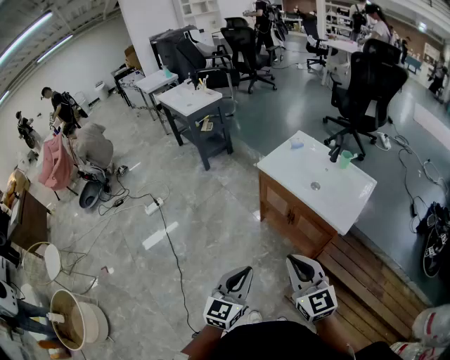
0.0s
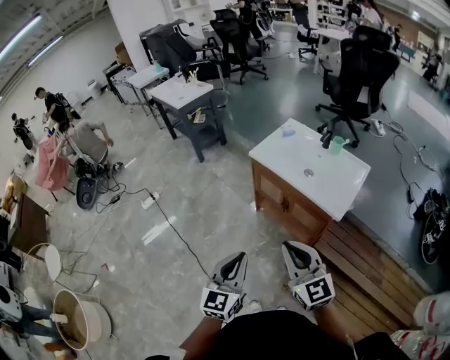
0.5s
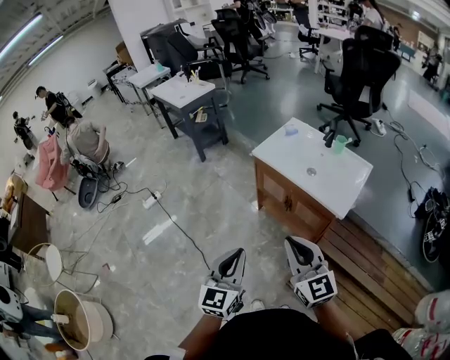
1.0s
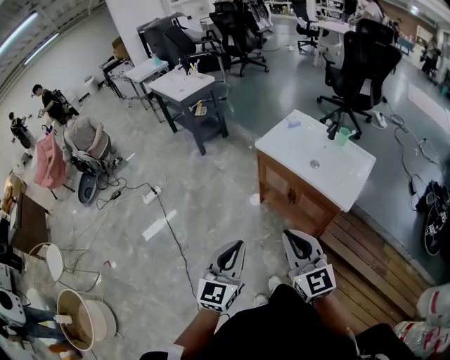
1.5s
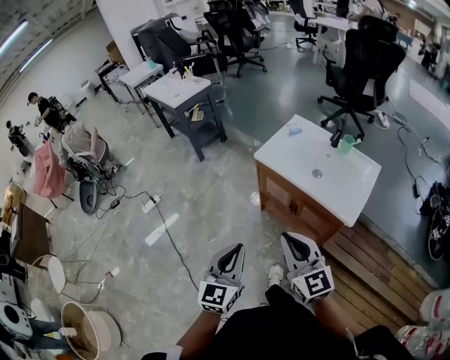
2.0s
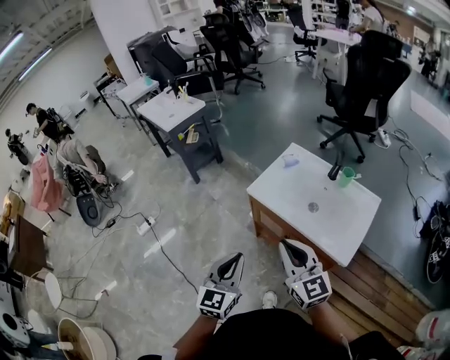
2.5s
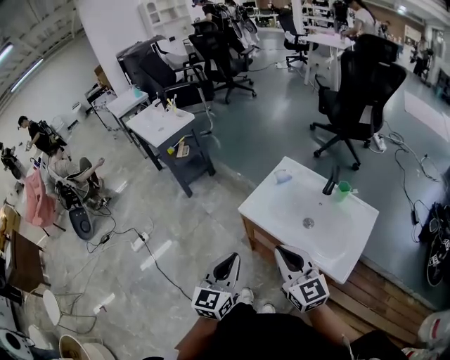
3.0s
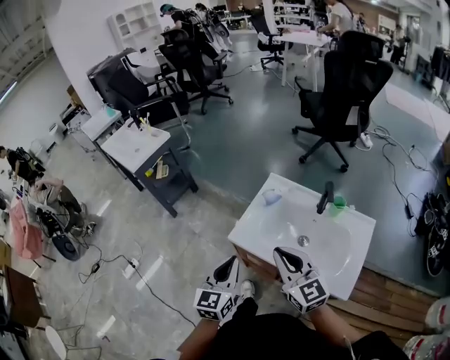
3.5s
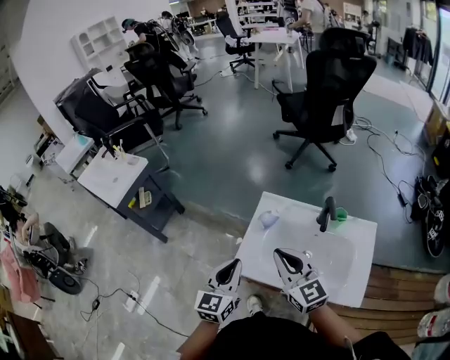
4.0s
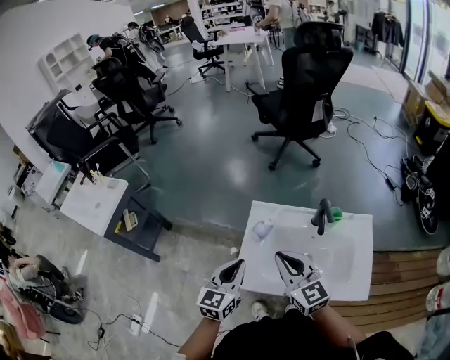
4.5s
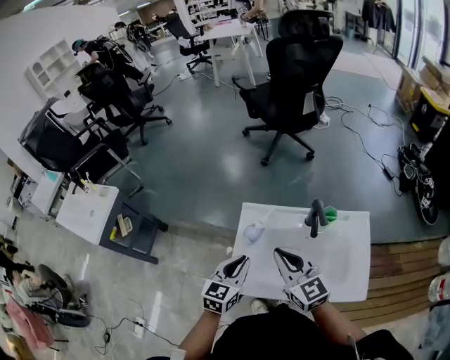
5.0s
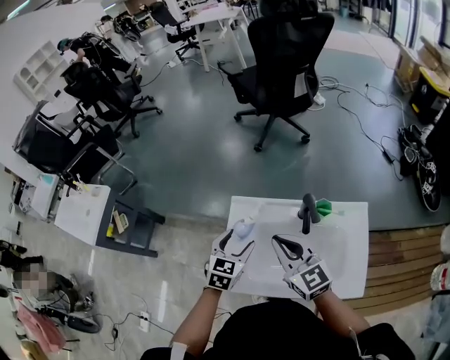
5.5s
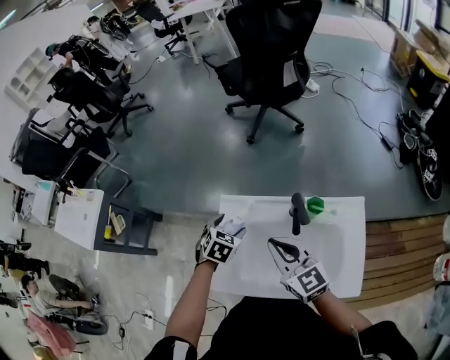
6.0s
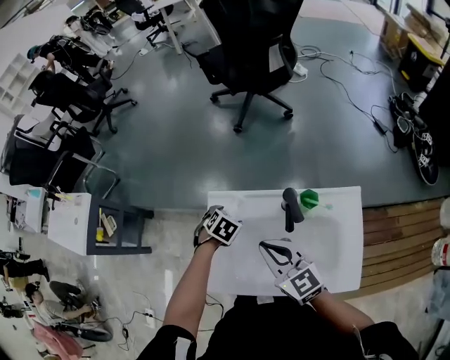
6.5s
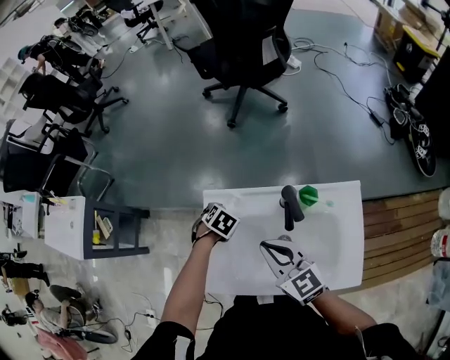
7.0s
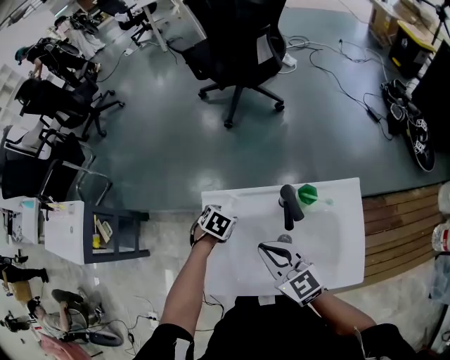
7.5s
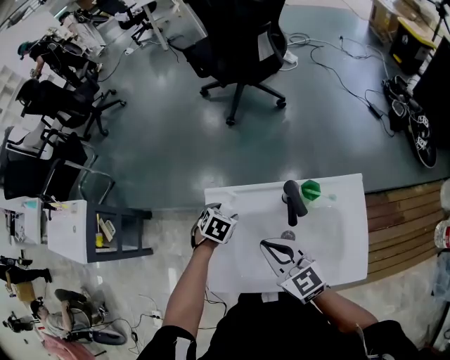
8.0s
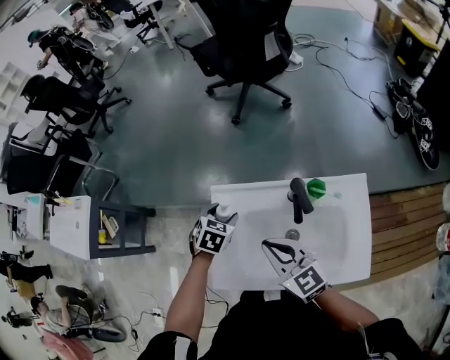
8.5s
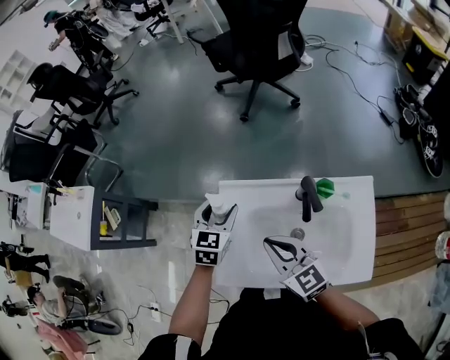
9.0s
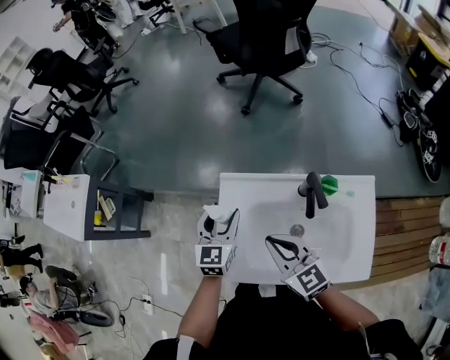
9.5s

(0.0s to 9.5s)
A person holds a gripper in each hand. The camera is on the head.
0.0s - 2.0s: The two grippers go about 10 cm forward.
2.0s - 4.0s: The pair of grippers is taken forward, about 60 cm. The left gripper rotates roughly 20 degrees.
4.0s - 5.5s: The right gripper heads forward and to the right, covering roughly 15 cm; the left gripper moves forward, to the right and downward, approximately 25 cm, swivels approximately 30 degrees, and opens up.
5.5s - 7.5s: The right gripper moves downward, about 10 cm; the left gripper moves downward, roughly 20 cm, and tilts its fingers some 40 degrees downward.
7.5s - 9.5s: The left gripper is displaced upward by approximately 15 cm, and tips its fingers upward by approximately 50 degrees; the right gripper changes place by about 5 cm.

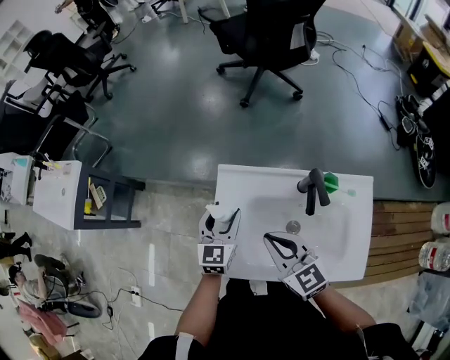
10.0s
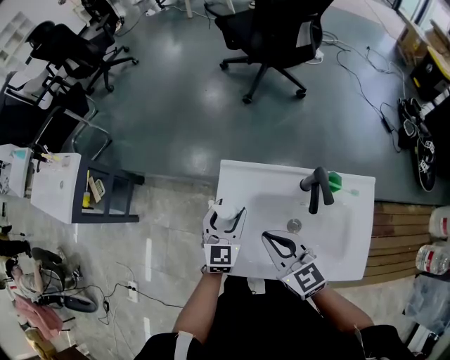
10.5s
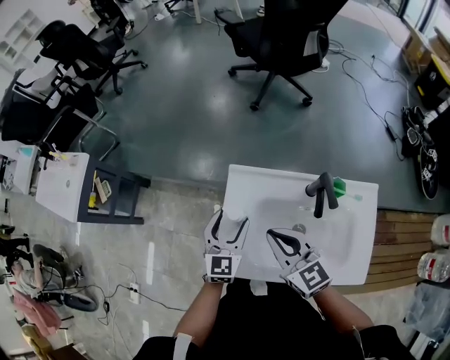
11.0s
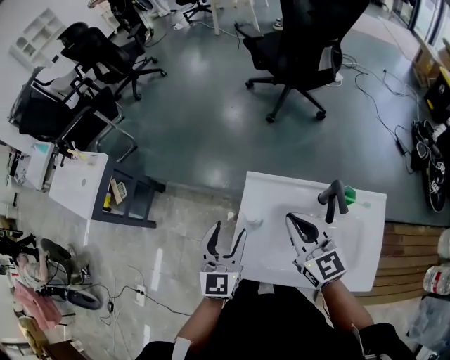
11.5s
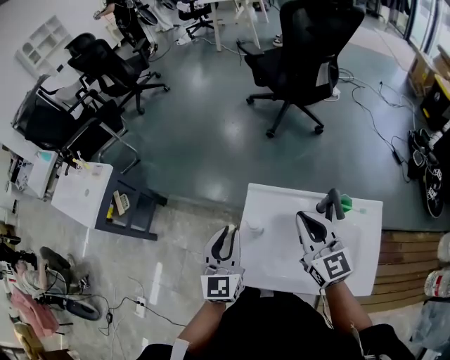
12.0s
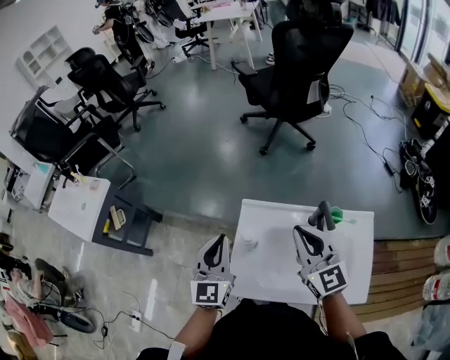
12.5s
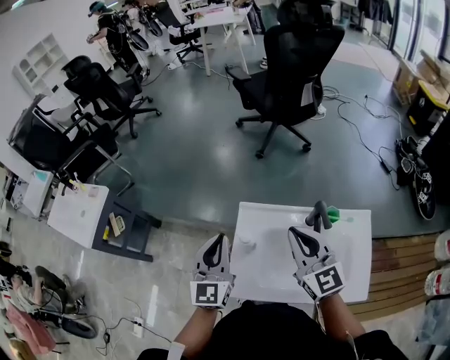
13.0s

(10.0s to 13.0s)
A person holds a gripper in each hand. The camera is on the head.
10.0s - 11.5s: The left gripper heads upward and to the left, covering some 15 cm. Meanwhile the right gripper goes some 5 cm upward.
11.5s - 13.0s: Both grippers travel together upward, some 10 cm. The left gripper closes.

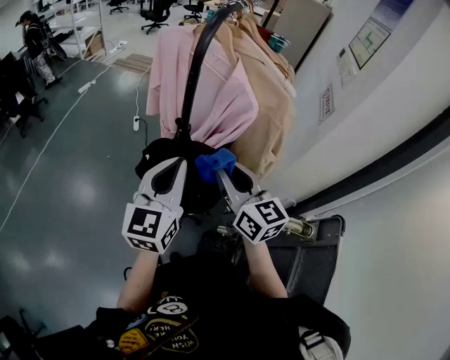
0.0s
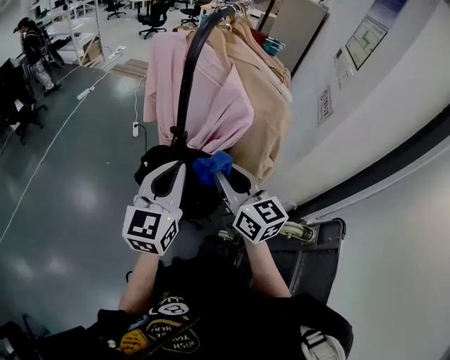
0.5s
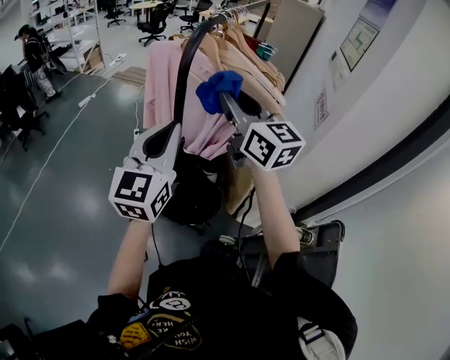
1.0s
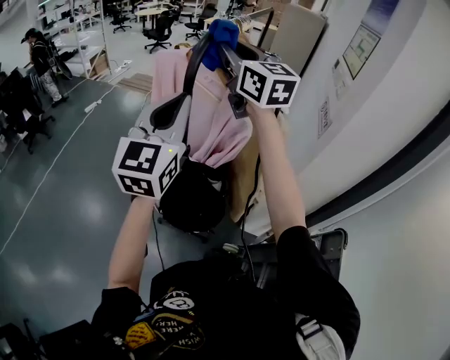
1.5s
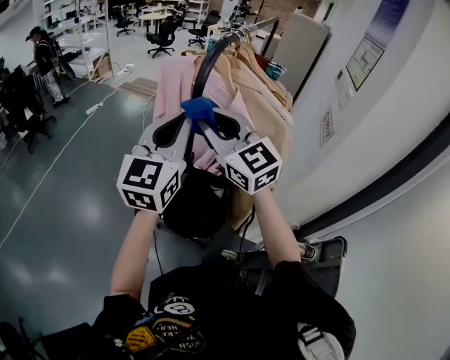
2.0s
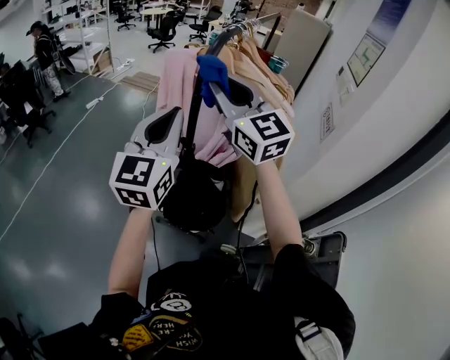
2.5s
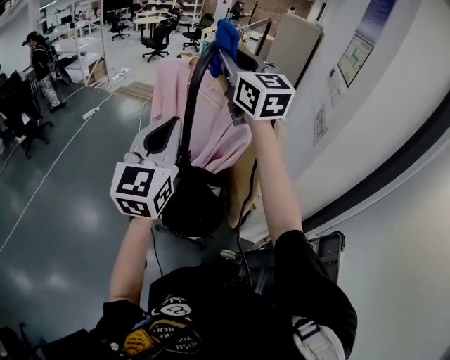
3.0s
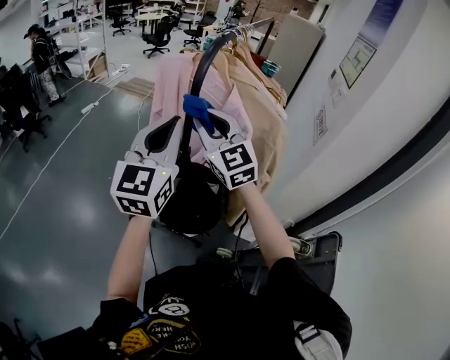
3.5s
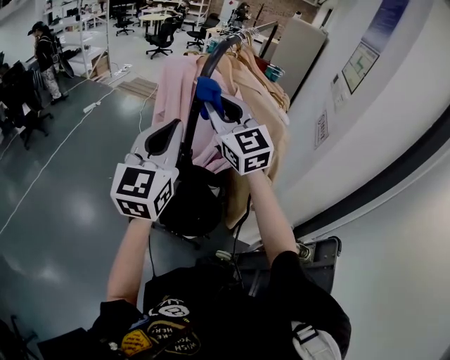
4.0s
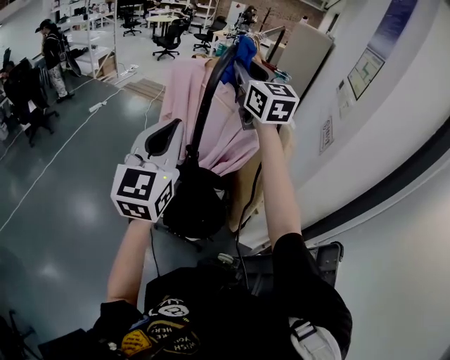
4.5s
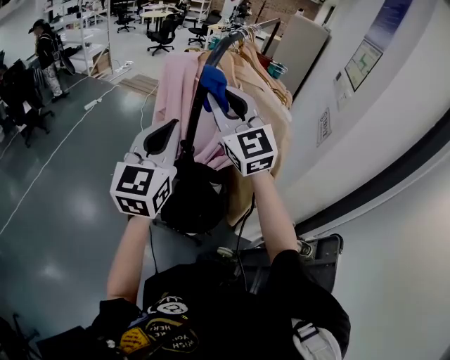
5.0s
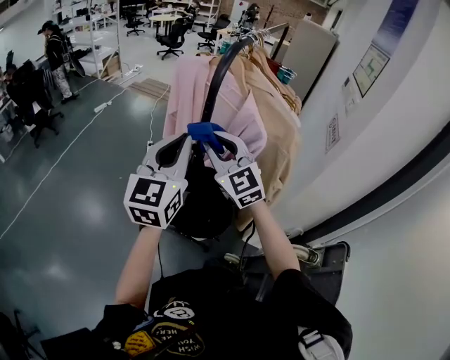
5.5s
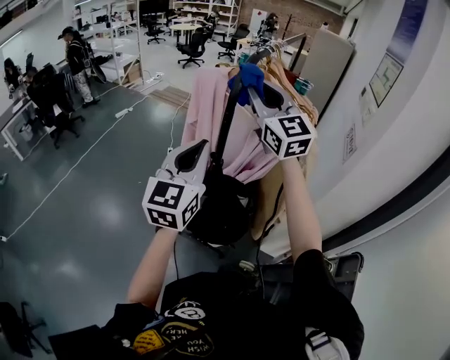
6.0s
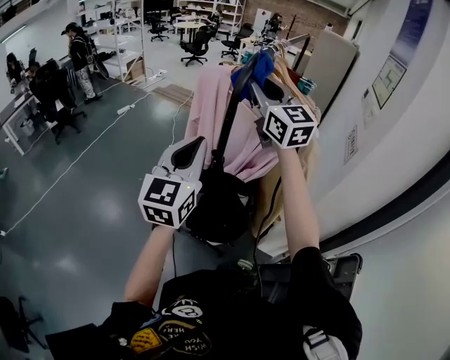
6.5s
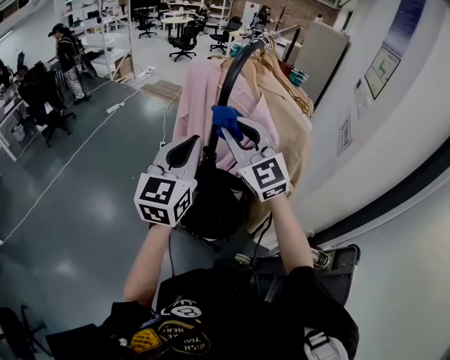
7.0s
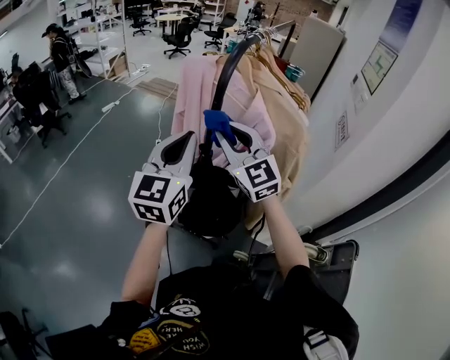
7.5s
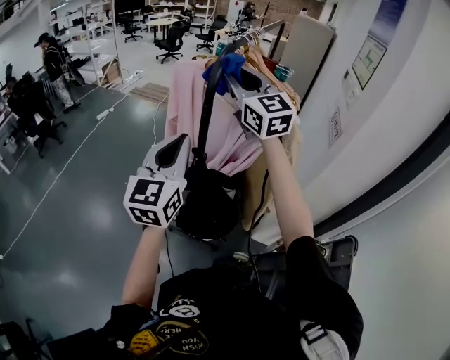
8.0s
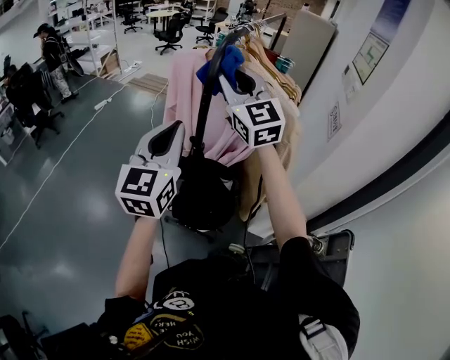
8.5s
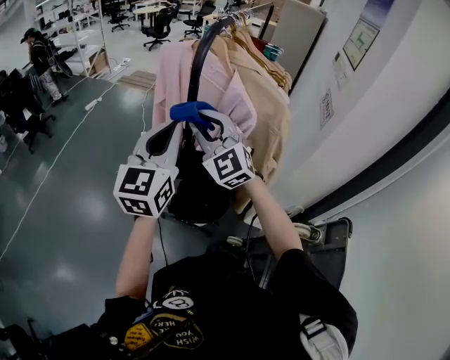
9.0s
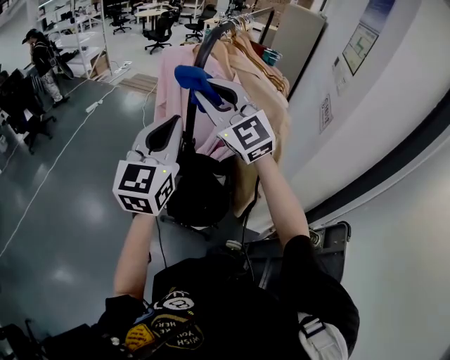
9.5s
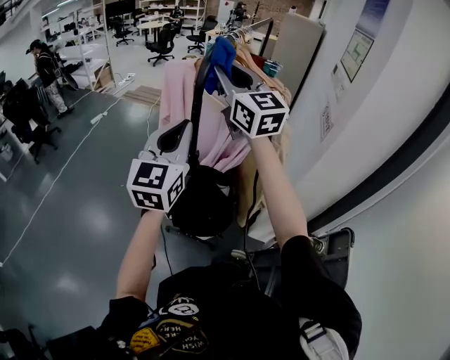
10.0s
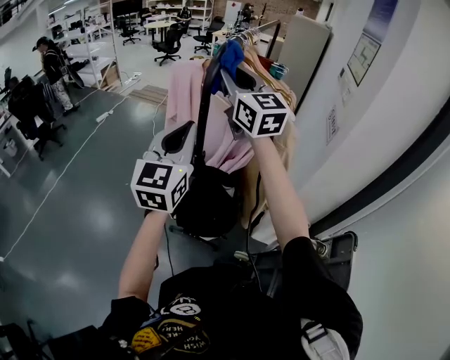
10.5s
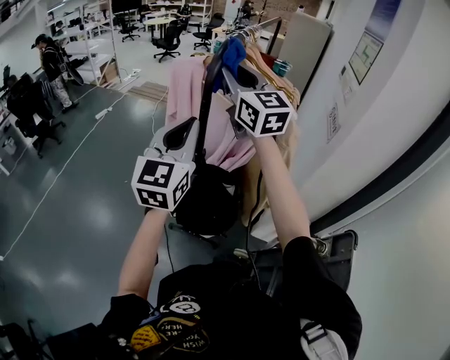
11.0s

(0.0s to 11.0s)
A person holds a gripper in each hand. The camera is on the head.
0.0s - 2.0s: The right gripper moves upward, forward and to the left, approximately 20 cm, and rotates roughly 30 degrees. The left gripper is displaced upward and forward by approximately 15 cm.
2.0s - 3.5s: The right gripper moves about 15 cm upward and comes back.
3.5s - 5.5s: The right gripper goes upward and returns, about 15 cm each way.
5.5s - 7.5s: The right gripper moves some 15 cm upward and comes back.
7.5s - 9.0s: The right gripper goes upward and returns, about 15 cm each way.
9.0s - 11.0s: The right gripper travels upward and forward by roughly 15 cm, and rotates about 30 degrees.

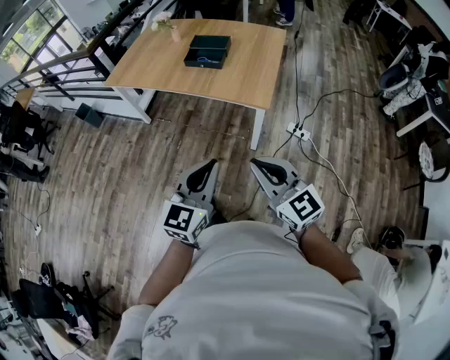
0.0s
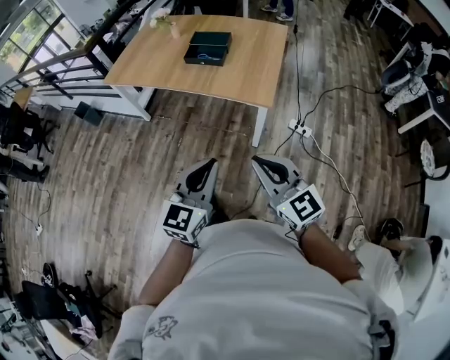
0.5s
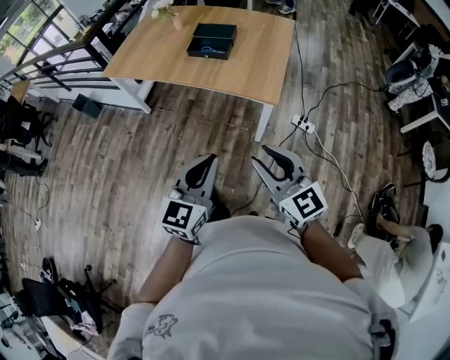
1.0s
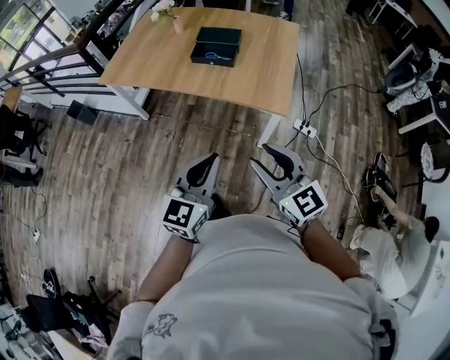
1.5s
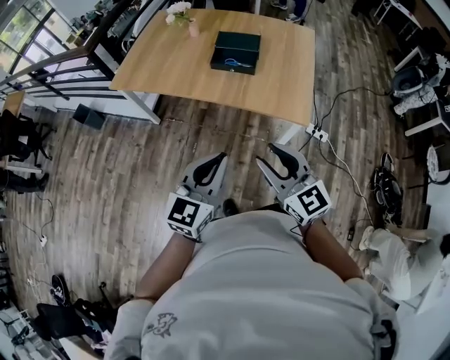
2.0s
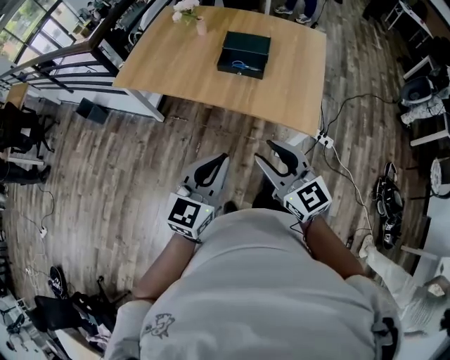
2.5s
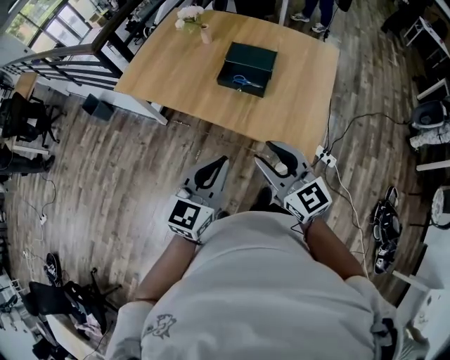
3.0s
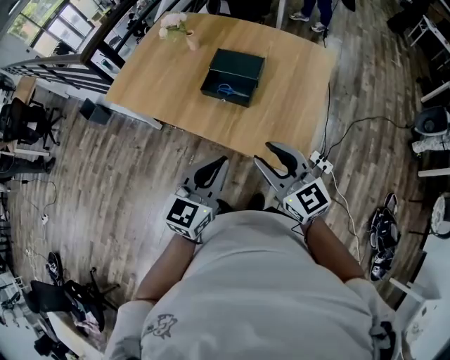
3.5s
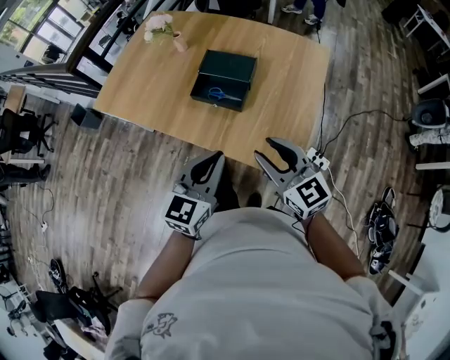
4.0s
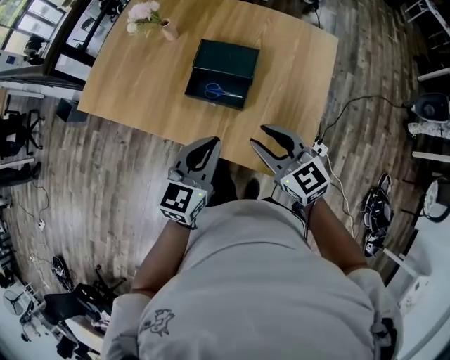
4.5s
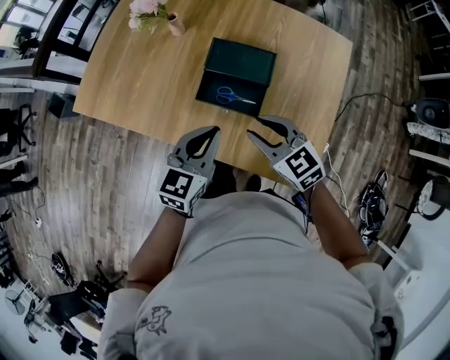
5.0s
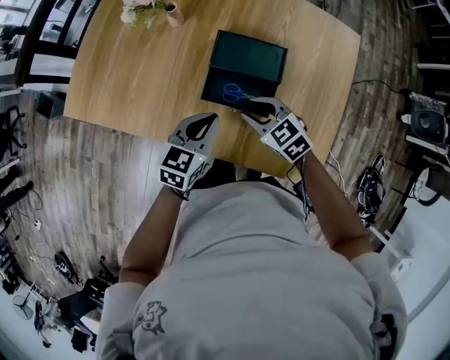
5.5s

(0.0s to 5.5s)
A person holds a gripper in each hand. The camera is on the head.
0.0s - 2.0s: The grippers both shift forward and to the left by about 25 cm. The right gripper opens.
2.0s - 3.5s: Both grippers move forward and to the right, about 25 cm.
3.5s - 5.5s: Both grippers move forward and downward, some 35 cm. The right gripper points its fingers about 40 degrees further downward. The left gripper rotates roughly 20 degrees.
